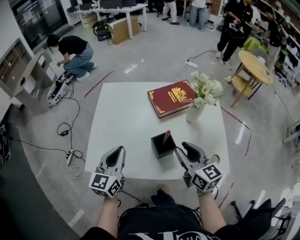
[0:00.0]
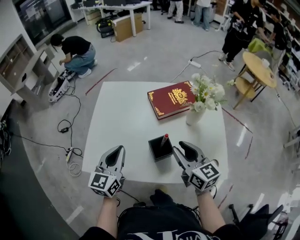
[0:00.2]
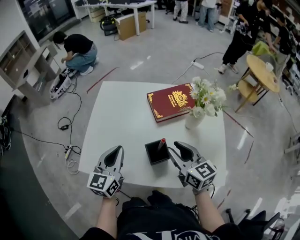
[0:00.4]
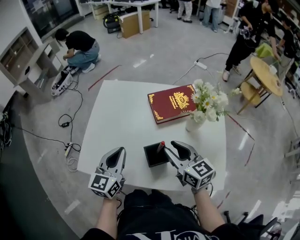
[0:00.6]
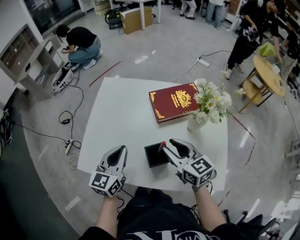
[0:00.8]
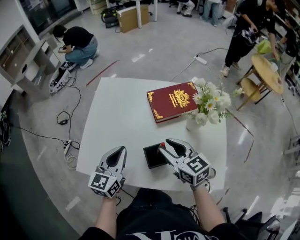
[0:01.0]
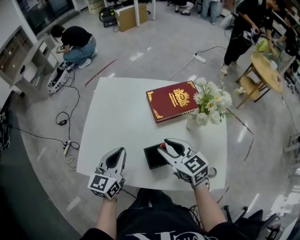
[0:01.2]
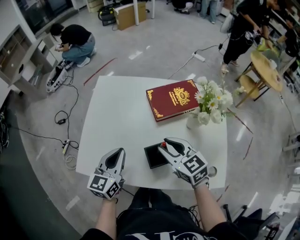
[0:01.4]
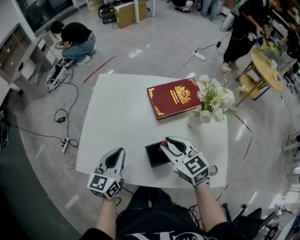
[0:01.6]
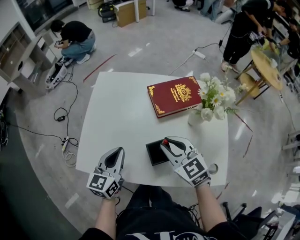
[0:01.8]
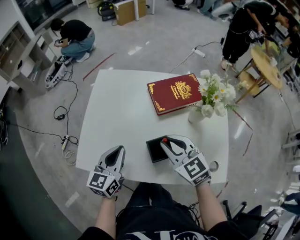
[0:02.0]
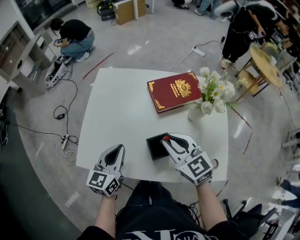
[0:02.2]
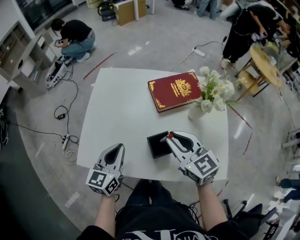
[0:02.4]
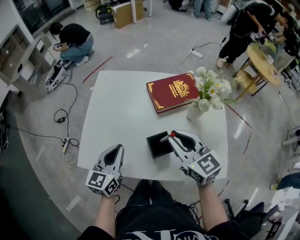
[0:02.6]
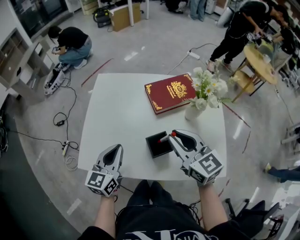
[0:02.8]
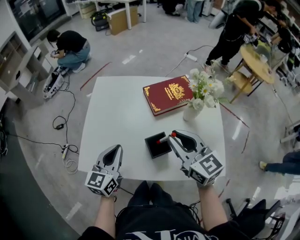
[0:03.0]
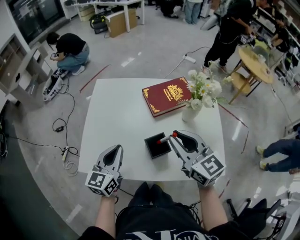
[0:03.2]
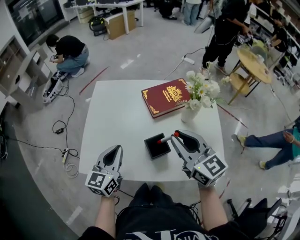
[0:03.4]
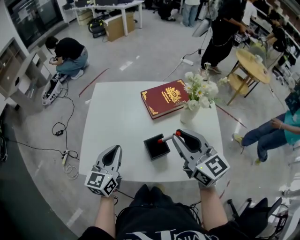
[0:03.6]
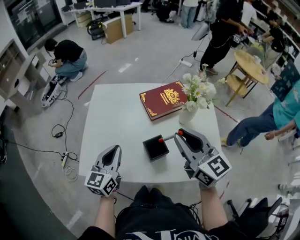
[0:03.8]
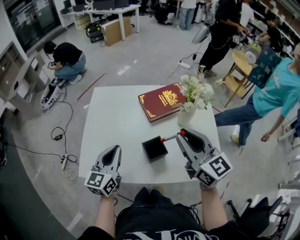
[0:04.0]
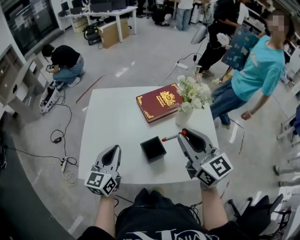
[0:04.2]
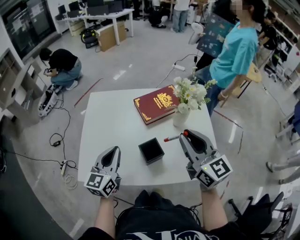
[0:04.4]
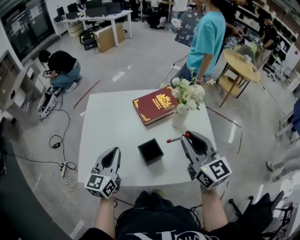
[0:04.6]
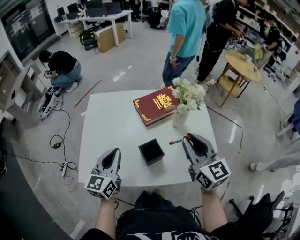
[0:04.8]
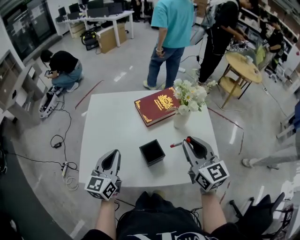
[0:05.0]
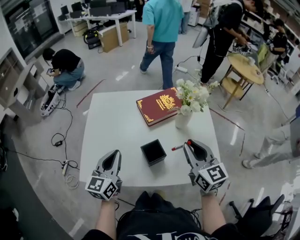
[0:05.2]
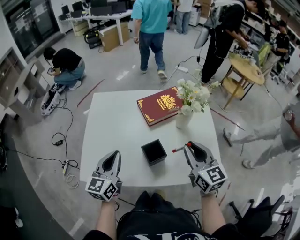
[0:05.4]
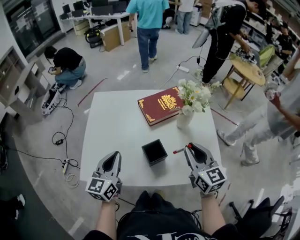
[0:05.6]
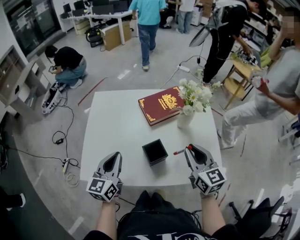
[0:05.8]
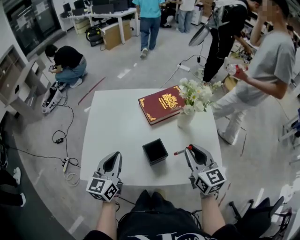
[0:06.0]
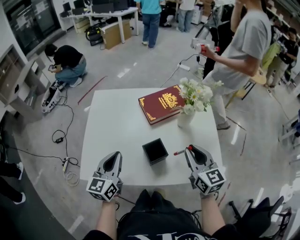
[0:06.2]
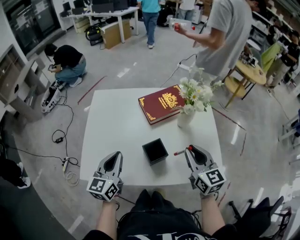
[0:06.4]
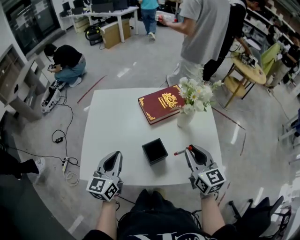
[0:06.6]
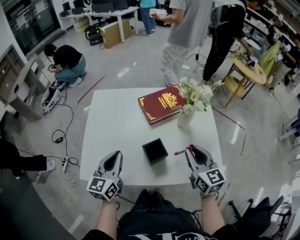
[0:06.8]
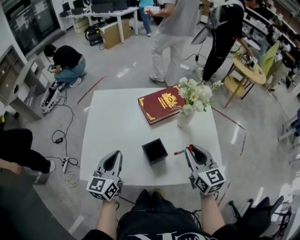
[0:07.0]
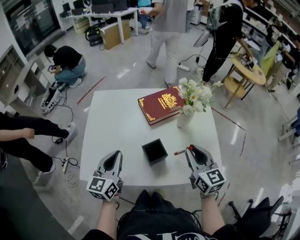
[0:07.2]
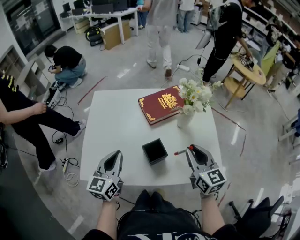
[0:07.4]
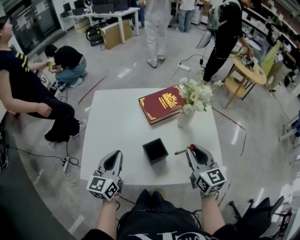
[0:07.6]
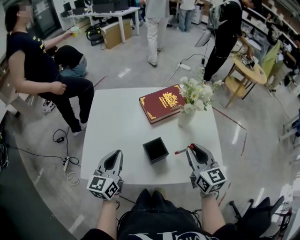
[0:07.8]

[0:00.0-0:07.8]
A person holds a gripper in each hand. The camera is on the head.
0.0 to 1.6 s: The right gripper heads forward, covering roughly 10 cm, and rotates about 30 degrees. The left gripper moves some 5 cm.
1.6 to 3.2 s: The right gripper shifts approximately 10 cm upward.
3.2 to 4.6 s: The right gripper heads to the right, covering roughly 5 cm.
4.6 to 6.2 s: The right gripper shifts some 10 cm downward.
6.2 to 7.8 s: Both grippers stay put.

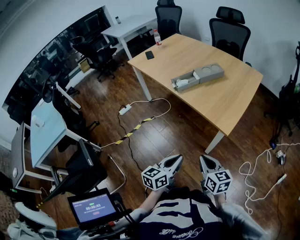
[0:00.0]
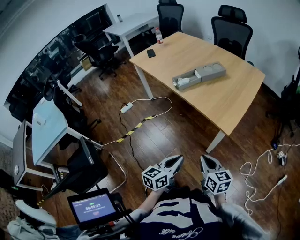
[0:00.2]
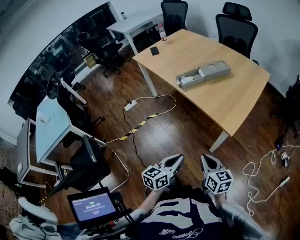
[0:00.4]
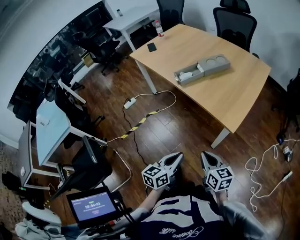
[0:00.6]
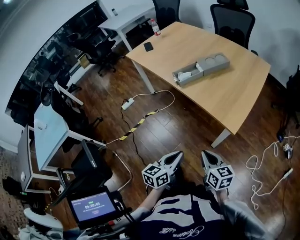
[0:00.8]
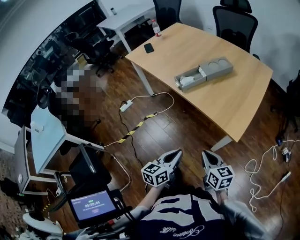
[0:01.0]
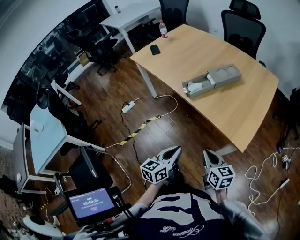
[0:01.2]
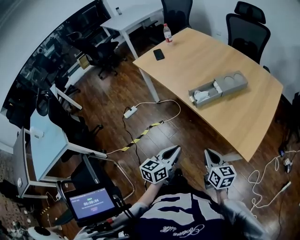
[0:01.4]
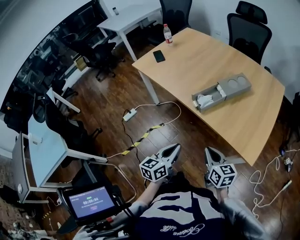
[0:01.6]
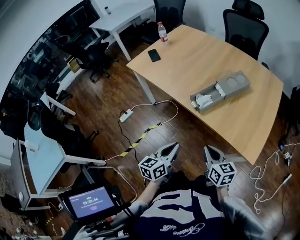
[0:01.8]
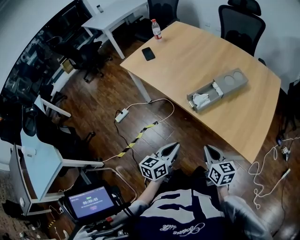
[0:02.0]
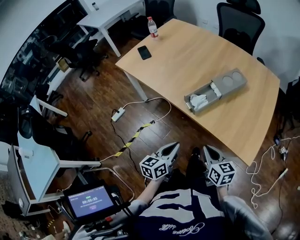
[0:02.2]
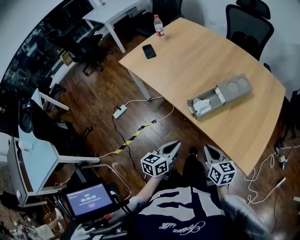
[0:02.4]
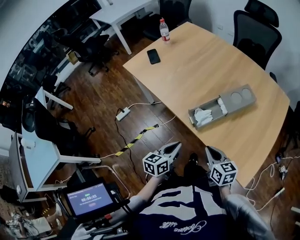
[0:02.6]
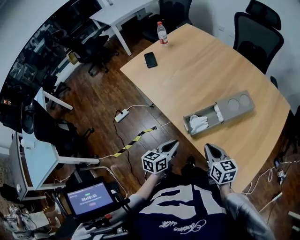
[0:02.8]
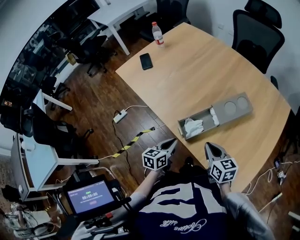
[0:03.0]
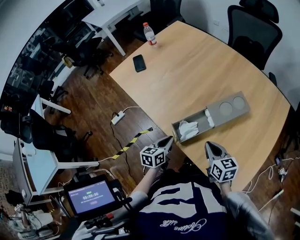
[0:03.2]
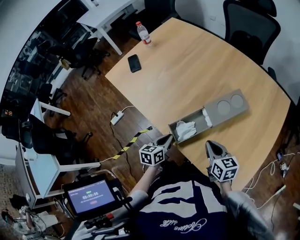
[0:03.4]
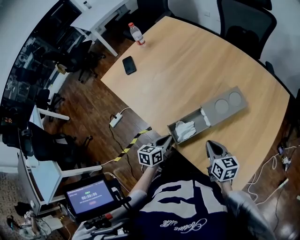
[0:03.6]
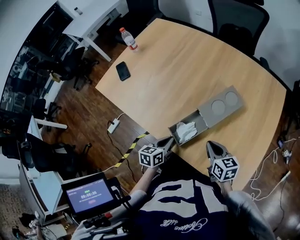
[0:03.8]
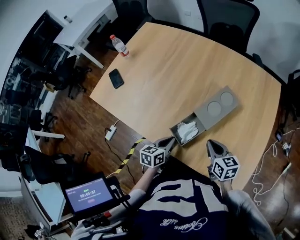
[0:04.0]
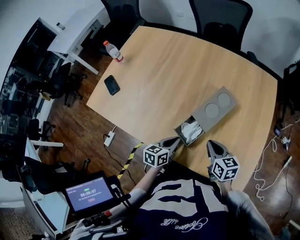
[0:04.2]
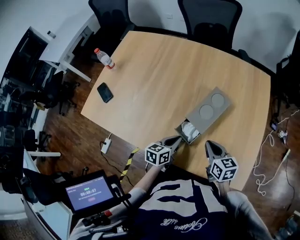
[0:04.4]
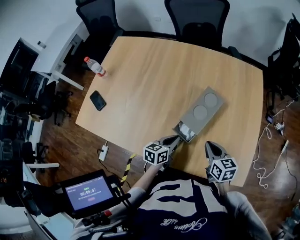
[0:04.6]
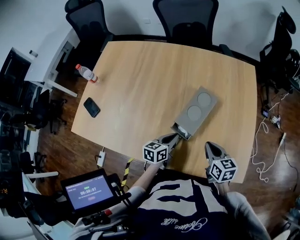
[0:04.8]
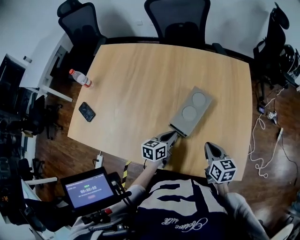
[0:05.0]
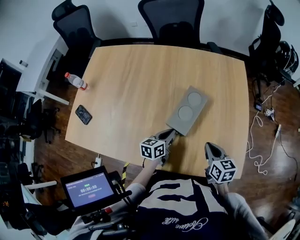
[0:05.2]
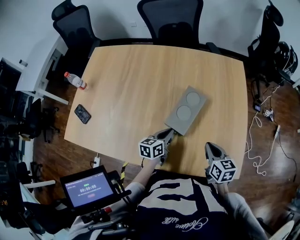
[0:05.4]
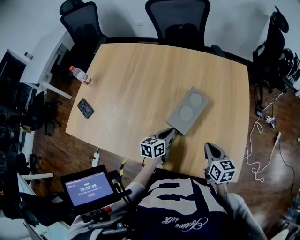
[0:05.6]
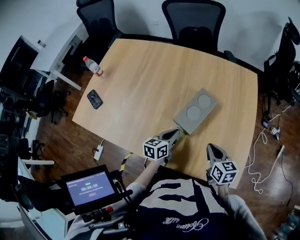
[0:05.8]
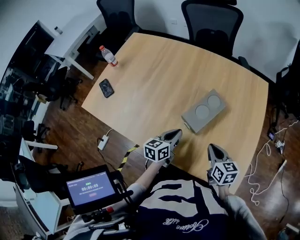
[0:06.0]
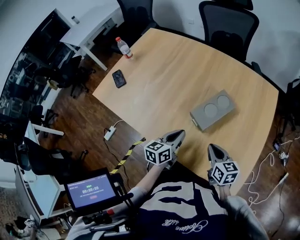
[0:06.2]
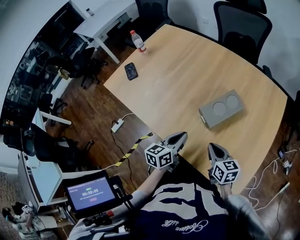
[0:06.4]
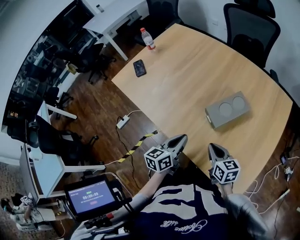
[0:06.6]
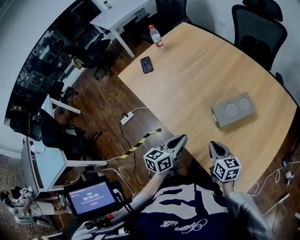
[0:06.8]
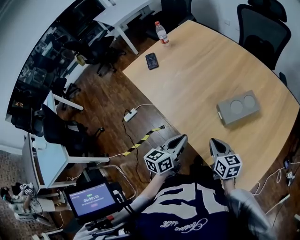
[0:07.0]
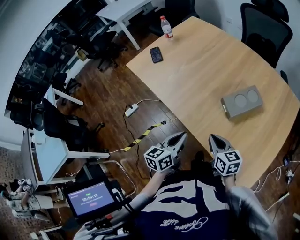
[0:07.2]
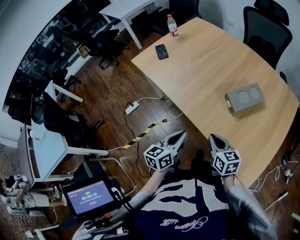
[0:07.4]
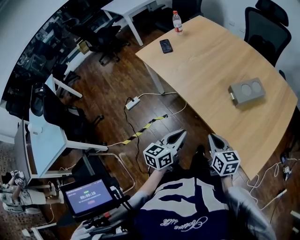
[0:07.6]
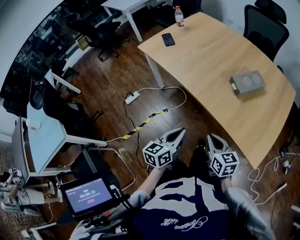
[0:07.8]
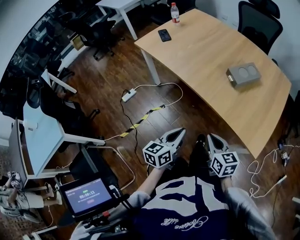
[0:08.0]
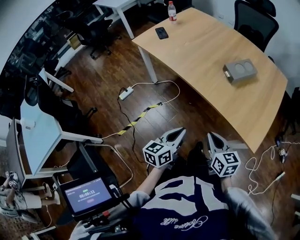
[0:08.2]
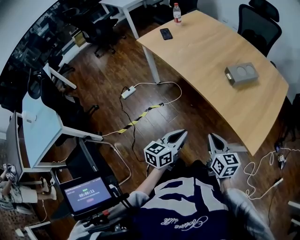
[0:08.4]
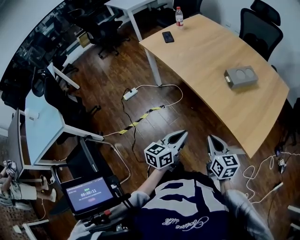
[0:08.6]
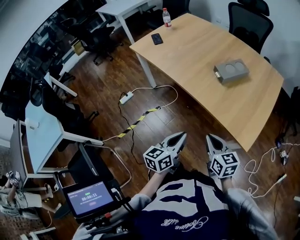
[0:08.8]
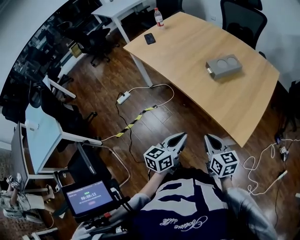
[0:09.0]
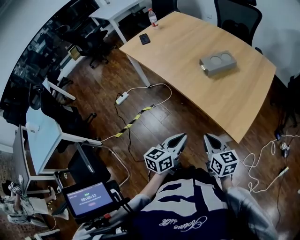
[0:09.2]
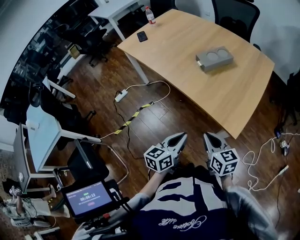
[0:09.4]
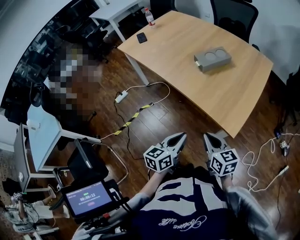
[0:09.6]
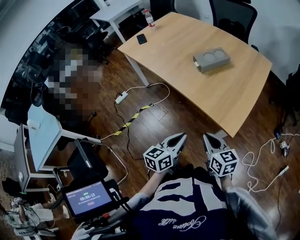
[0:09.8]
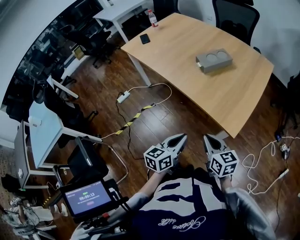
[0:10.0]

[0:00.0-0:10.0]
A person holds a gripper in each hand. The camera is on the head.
0.0 to 1.4 s: Both grippers travel together forward and to the left, approximately 25 cm.
1.4 to 2.8 s: The two grippers go about 25 cm forward.
2.8 to 4.2 s: Both grippers travel together forward and to the right, approximately 15 cm. The right gripper changes its angle by some 20 degrees, while the left gripper turns by roughly 30 degrees.
4.2 to 5.8 s: The right gripper moves to the right, some 10 cm; the left gripper goes about 10 cm forward and to the right.
5.8 to 7.2 s: The left gripper moves roughly 25 cm, and changes its angle by approximately 30 degrees. The right gripper shifts by roughly 20 cm, and turns by about 40 degrees.
7.2 to 8.6 s: The grippers both shift backward by about 25 cm.
8.6 to 10.0 s: Both grippers move to the right and backward, approximately 20 cm.

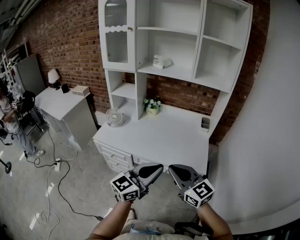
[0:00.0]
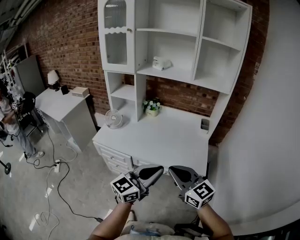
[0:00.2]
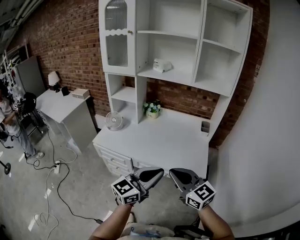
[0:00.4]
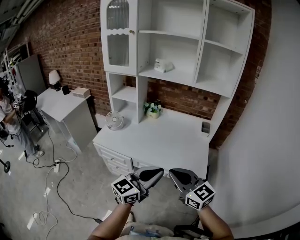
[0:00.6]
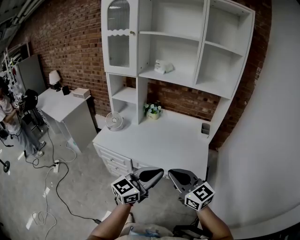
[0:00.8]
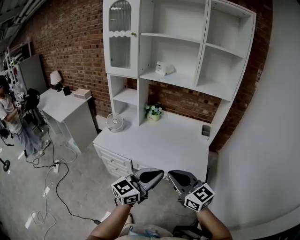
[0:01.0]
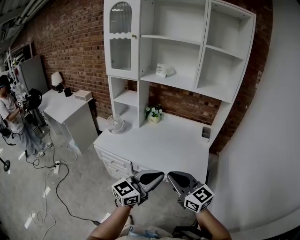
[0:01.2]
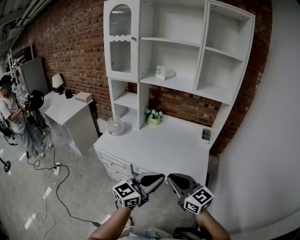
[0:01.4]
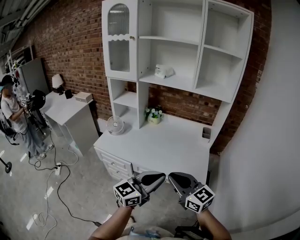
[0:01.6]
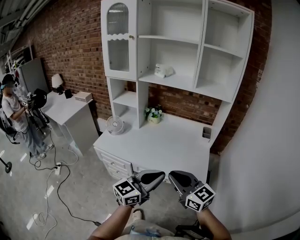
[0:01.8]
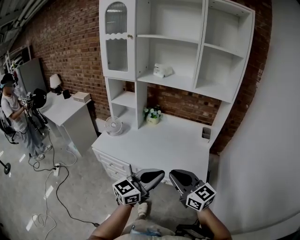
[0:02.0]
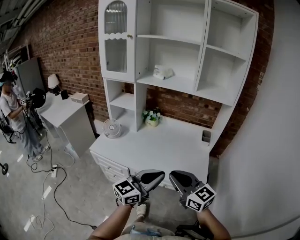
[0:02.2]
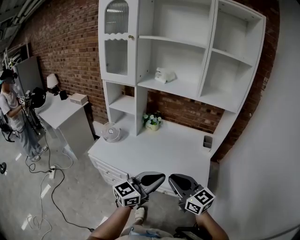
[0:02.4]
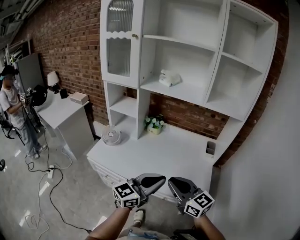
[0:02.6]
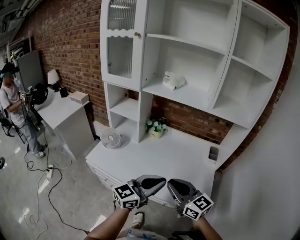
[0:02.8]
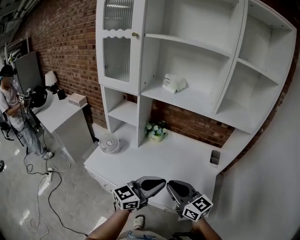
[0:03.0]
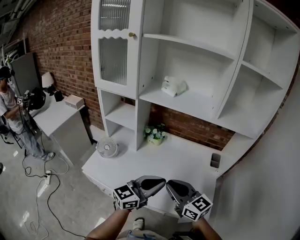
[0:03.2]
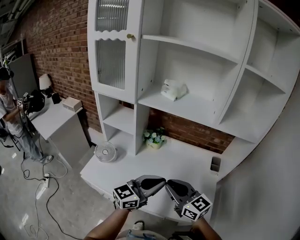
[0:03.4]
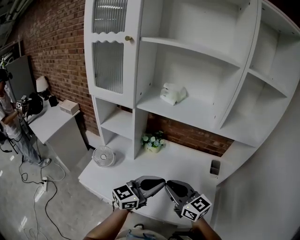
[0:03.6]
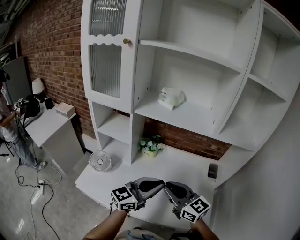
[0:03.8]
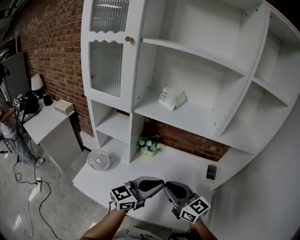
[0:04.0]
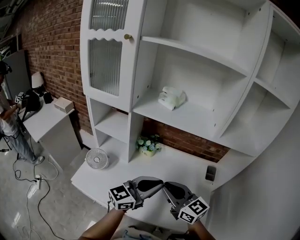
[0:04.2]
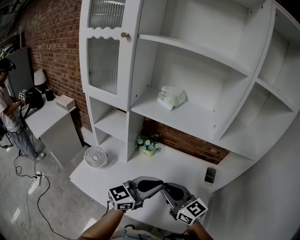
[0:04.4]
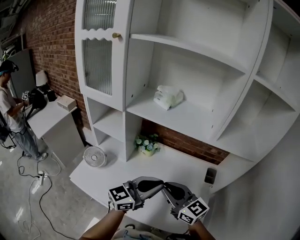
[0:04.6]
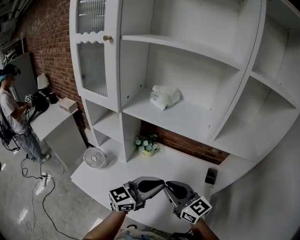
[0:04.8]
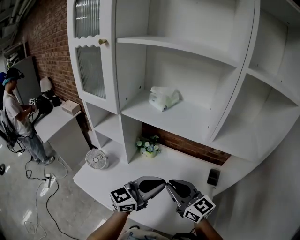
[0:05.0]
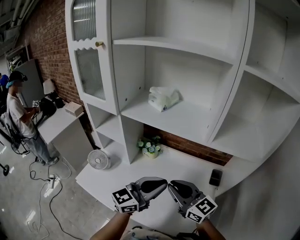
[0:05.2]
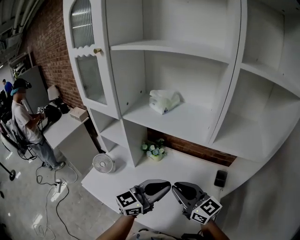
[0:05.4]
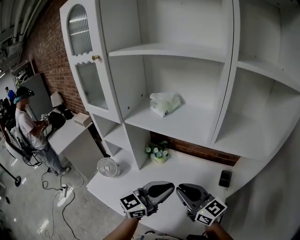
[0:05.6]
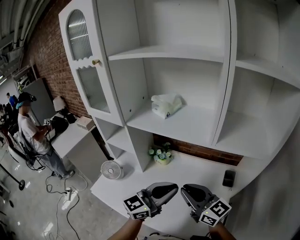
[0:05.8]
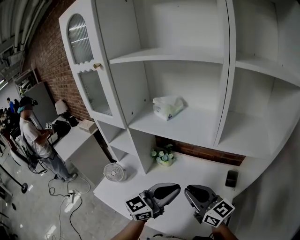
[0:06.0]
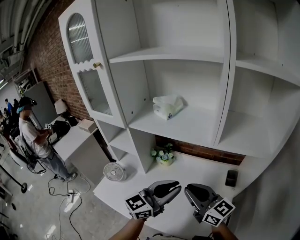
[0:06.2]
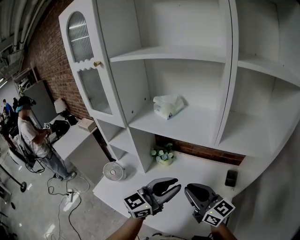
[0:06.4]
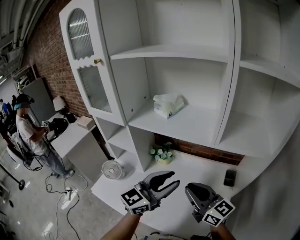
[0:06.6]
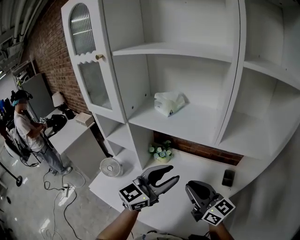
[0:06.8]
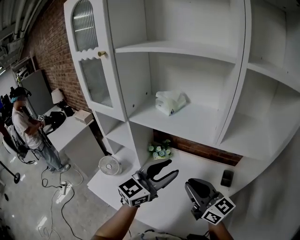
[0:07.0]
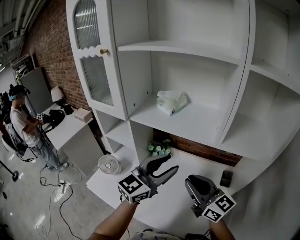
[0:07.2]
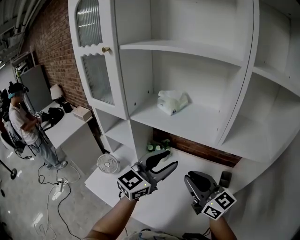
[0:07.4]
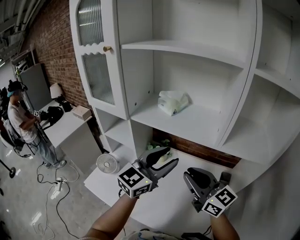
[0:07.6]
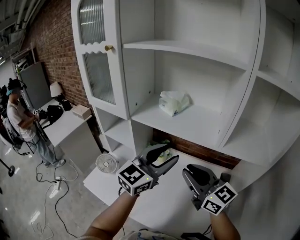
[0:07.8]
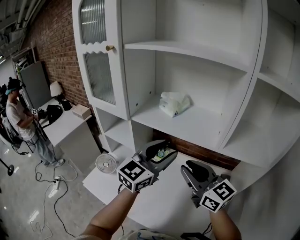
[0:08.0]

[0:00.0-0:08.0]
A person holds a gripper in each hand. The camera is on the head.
0.0 to 1.6 s: The grippers stay close to where they were, moving slightly.
1.6 to 3.2 s: Both grippers travel together forward, about 25 cm.
3.2 to 4.8 s: The grippers both shift forward by roughly 10 cm.
4.8 to 6.4 s: The right gripper moves to the right, roughly 5 cm.
6.4 to 8.0 s: The left gripper is displaced forward and upward by approximately 15 cm, and opens up. The right gripper heads upward and forward, covering some 10 cm.
